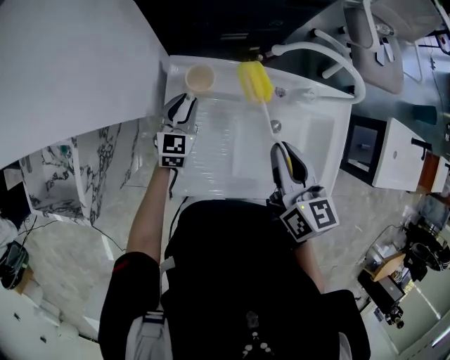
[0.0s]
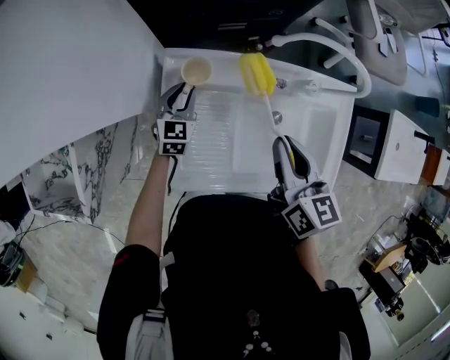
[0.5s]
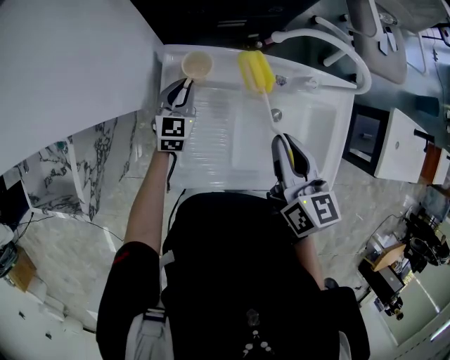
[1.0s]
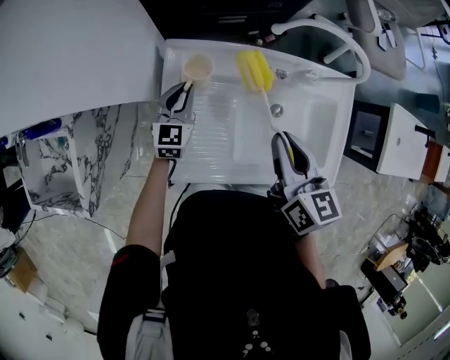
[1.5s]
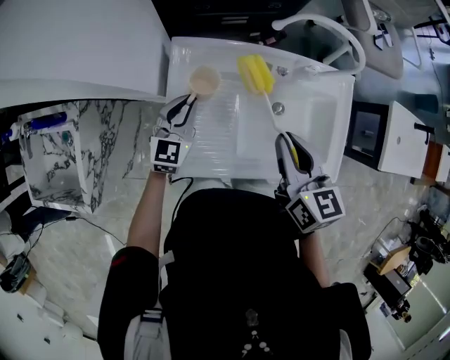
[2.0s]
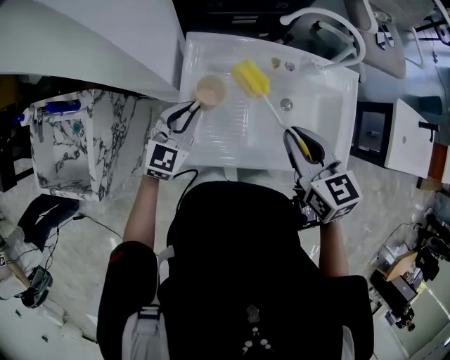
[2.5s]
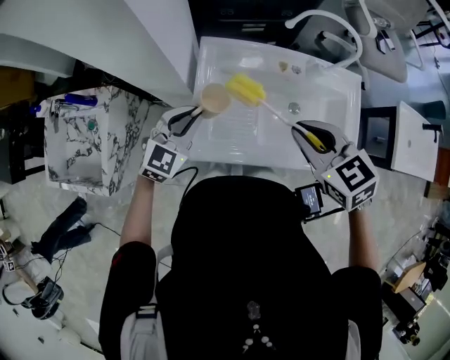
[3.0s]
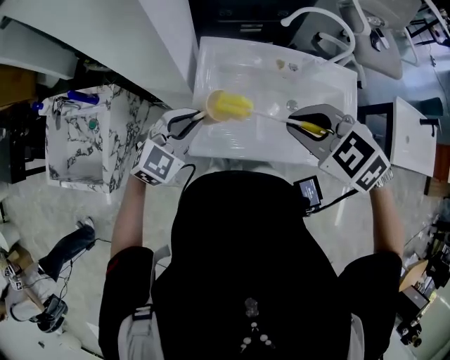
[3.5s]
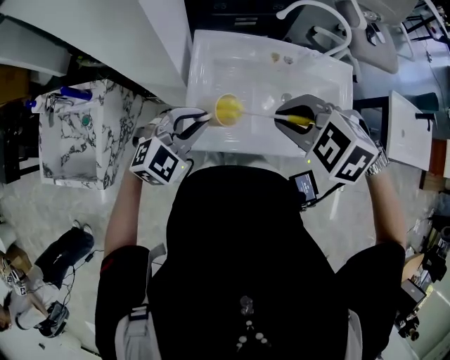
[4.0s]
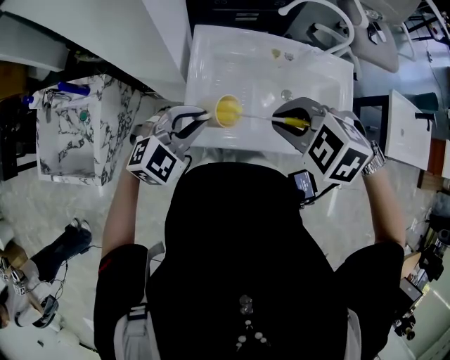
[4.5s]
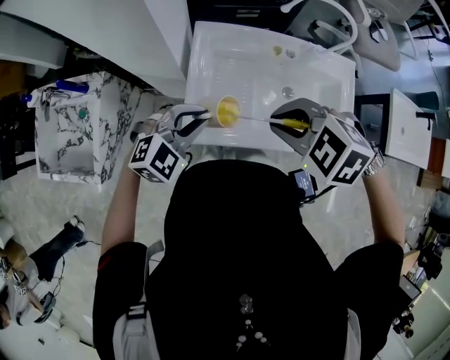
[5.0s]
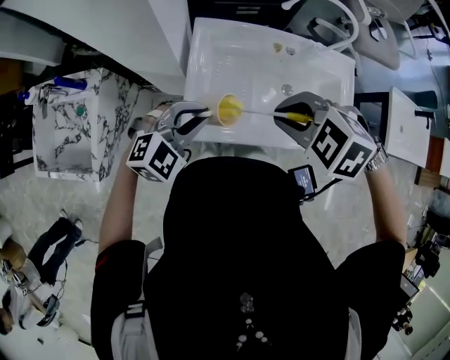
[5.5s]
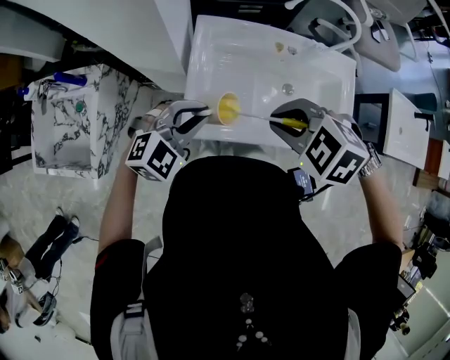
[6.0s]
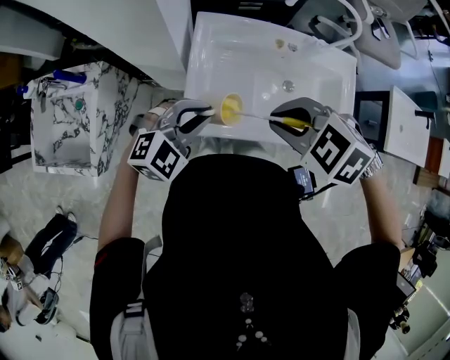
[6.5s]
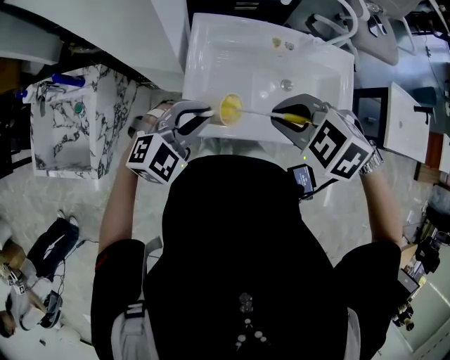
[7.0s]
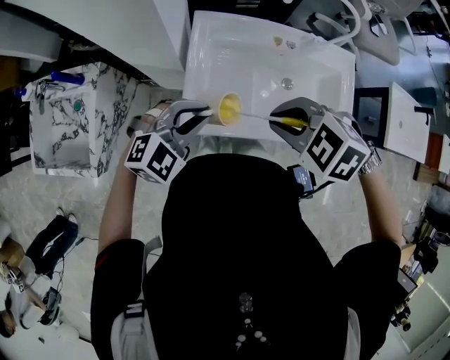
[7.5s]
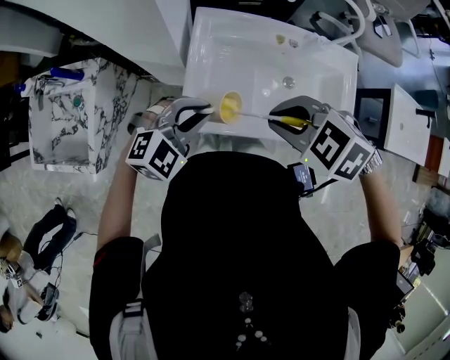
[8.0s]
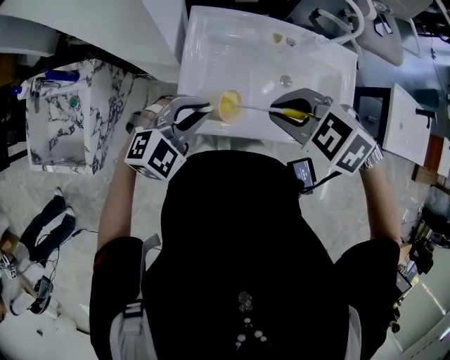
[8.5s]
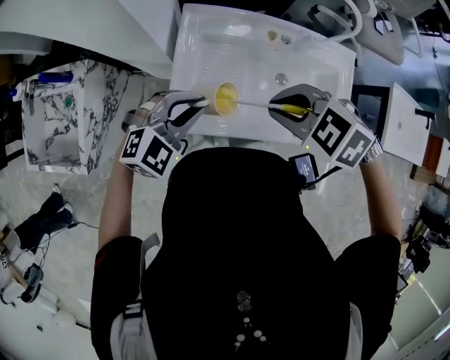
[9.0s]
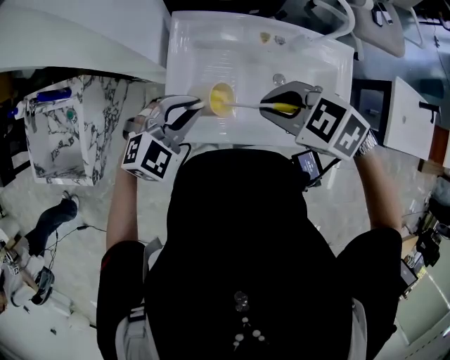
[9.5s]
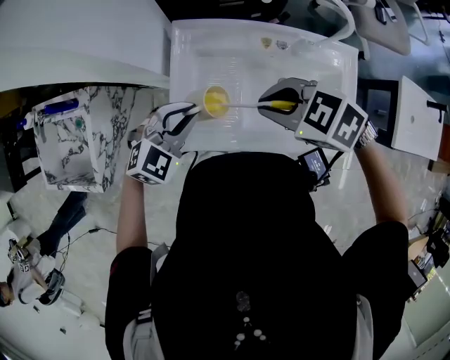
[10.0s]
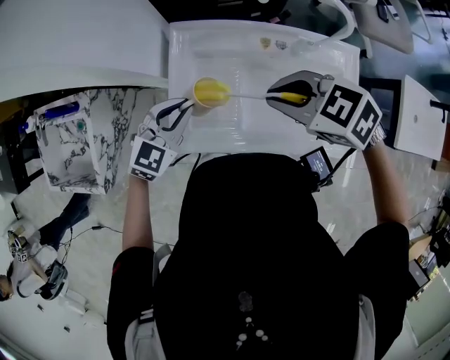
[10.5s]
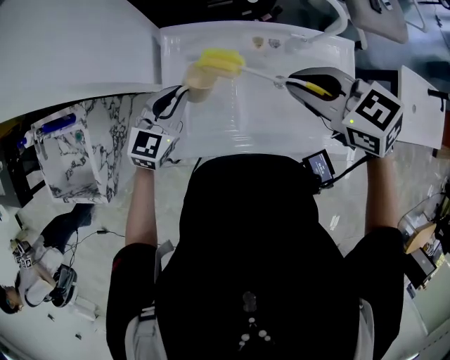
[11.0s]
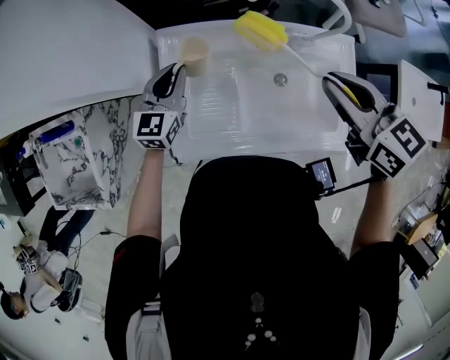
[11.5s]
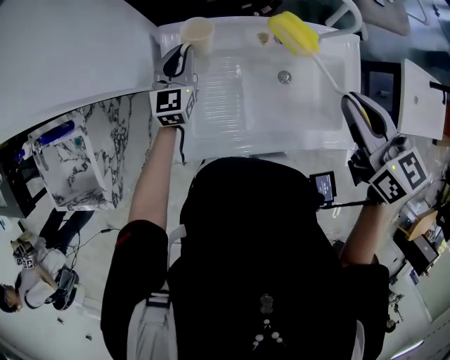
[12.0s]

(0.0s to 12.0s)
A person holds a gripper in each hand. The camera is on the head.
0.0s - 2.0s: The right gripper travels backward by roughly 5 cm. Meanwhile the left gripper travels backward and upward by some 10 cm.
2.0s - 4.0s: The right gripper goes roughly 15 cm backward, to the left and upward, and tips its fingers downward by about 30 degrees. The left gripper moves backward and upward, about 20 cm, and rotates some 40 degrees.
4.0s - 8.0s: There are only small adjustments of the grippers.
8.0s - 10.0s: The left gripper ends up about 10 cm from where it was; the right gripper ends up approximately 10 cm from where it was.
10.0s - 12.0s: The right gripper ends up roughly 15 cm from where it was, and rotates some 60 degrees, while the left gripper ends up approximately 20 cm from where it was, and swivels some 40 degrees.

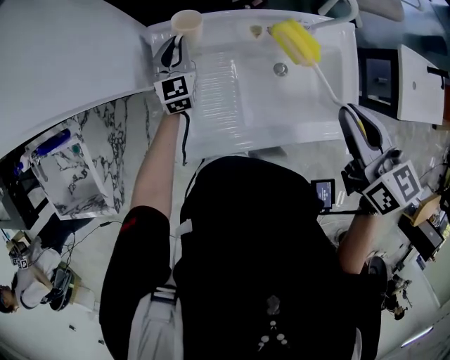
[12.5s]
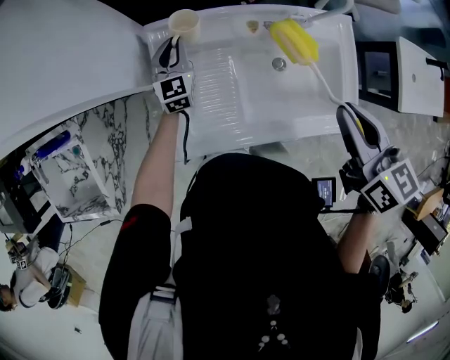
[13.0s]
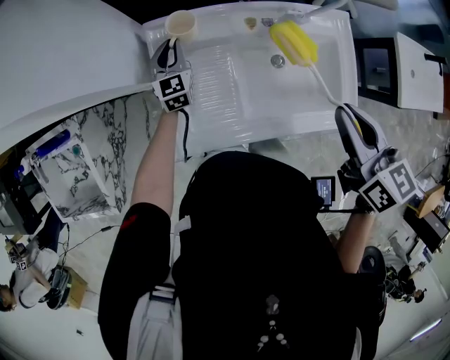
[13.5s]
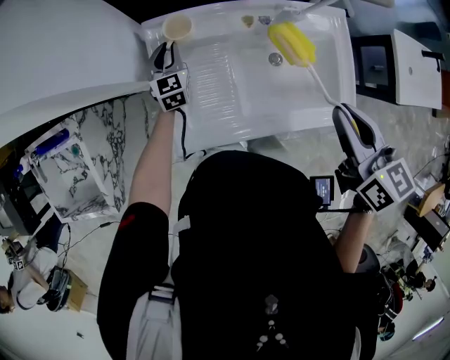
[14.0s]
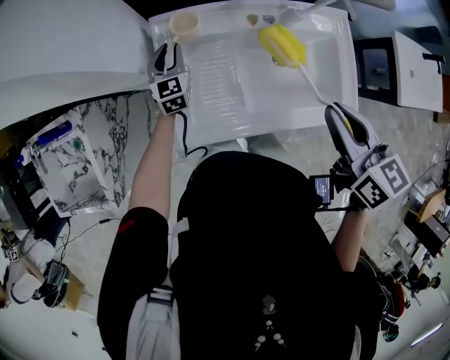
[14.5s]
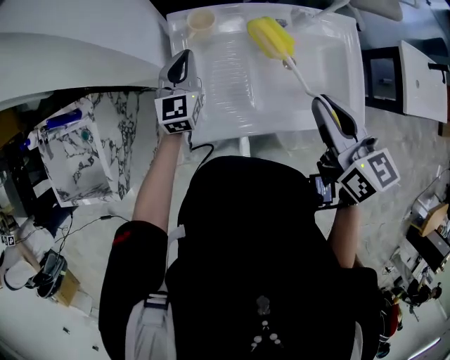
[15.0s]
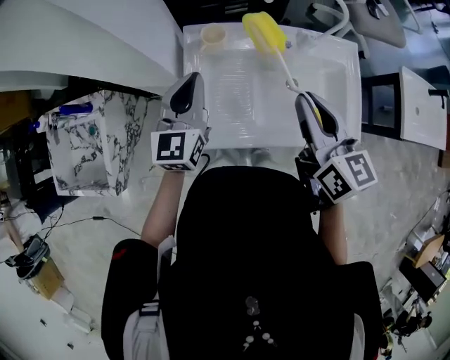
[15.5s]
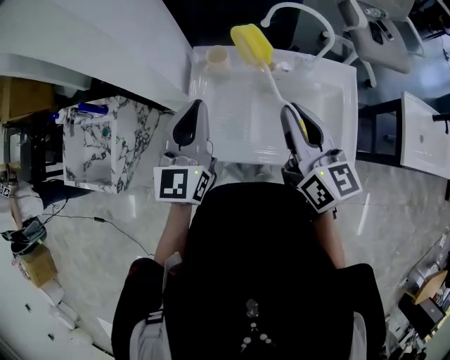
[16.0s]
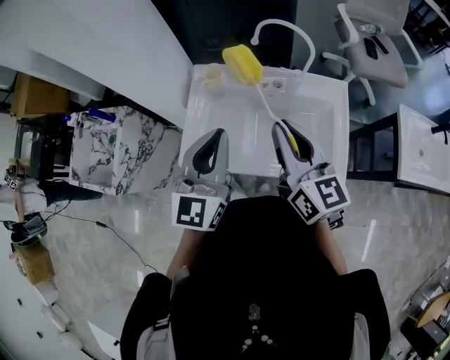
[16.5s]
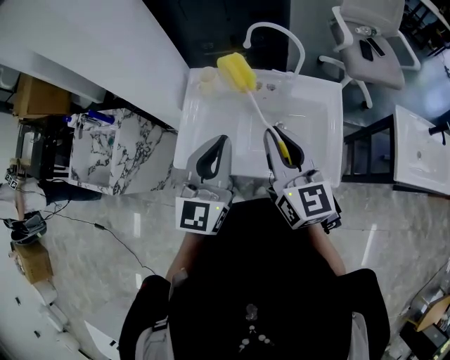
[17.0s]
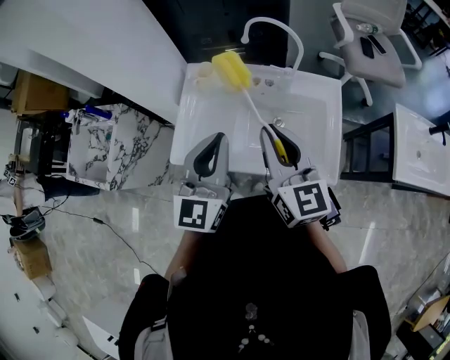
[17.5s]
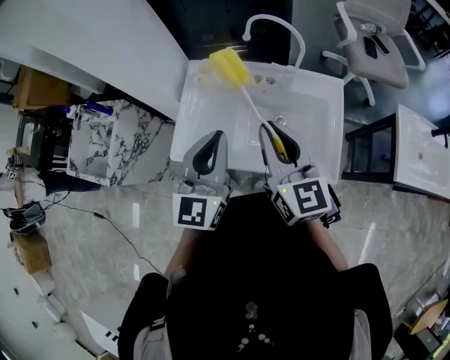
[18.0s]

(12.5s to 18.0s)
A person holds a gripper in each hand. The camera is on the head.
12.5s - 14.5s: The right gripper is displaced backward by some 5 cm, while the left gripper ends up about 5 cm from where it was.
14.5s - 16.0s: The right gripper travels upward by roughly 5 cm, and turns by about 30 degrees, while the left gripper is displaced upward and backward by some 35 cm, changes its angle by some 20 degrees, and closes.
16.0s - 18.0s: The right gripper is displaced backward by some 5 cm, while the left gripper travels to the right and backward by about 15 cm.

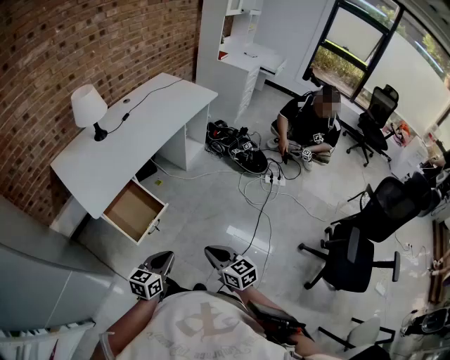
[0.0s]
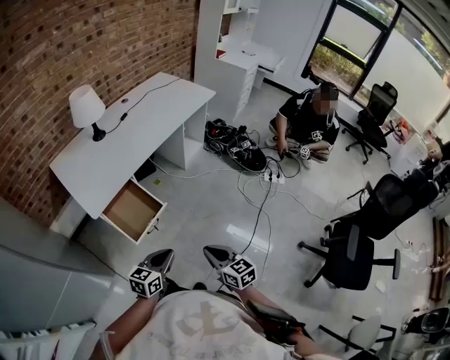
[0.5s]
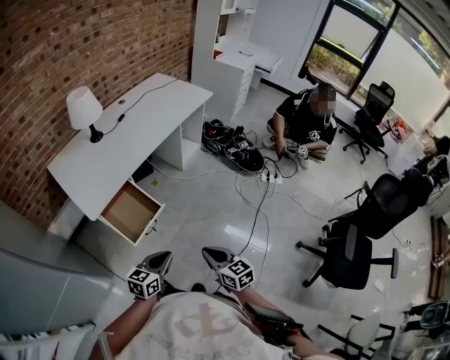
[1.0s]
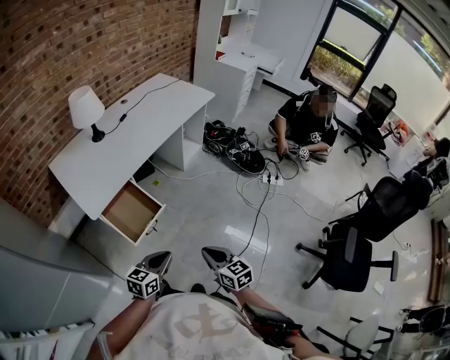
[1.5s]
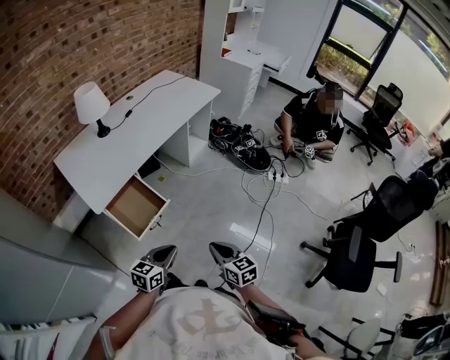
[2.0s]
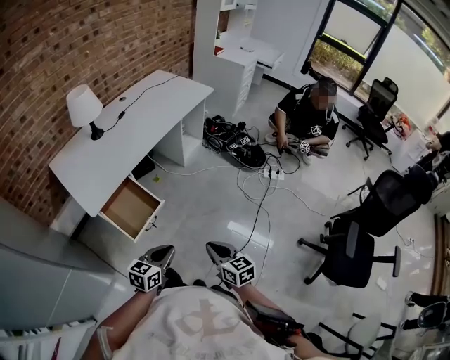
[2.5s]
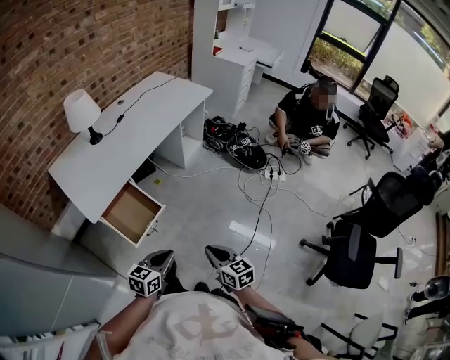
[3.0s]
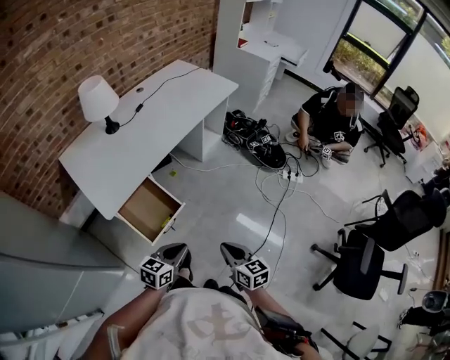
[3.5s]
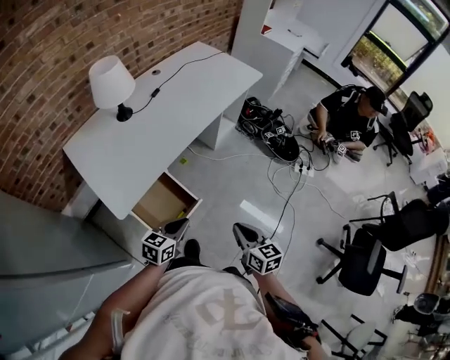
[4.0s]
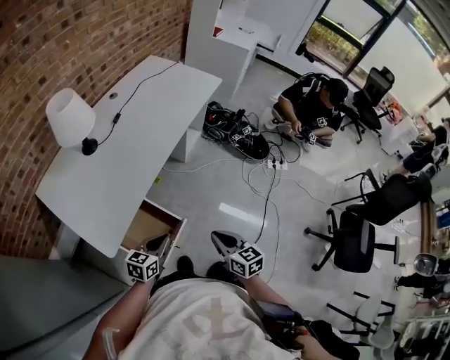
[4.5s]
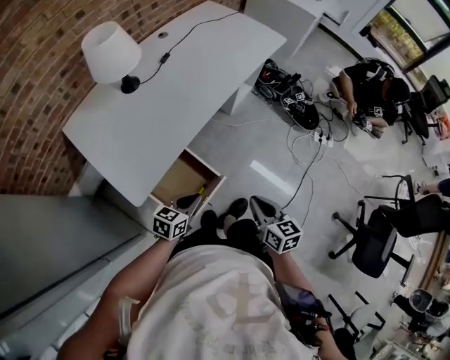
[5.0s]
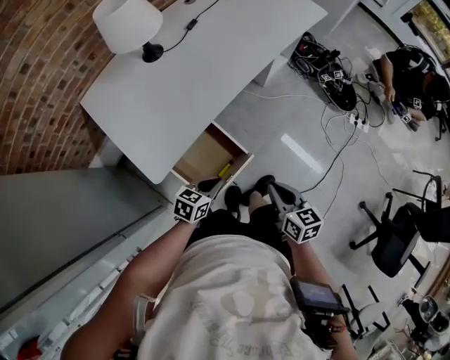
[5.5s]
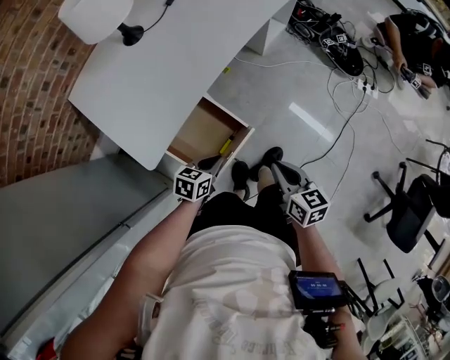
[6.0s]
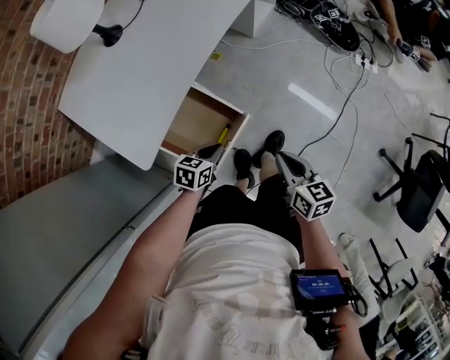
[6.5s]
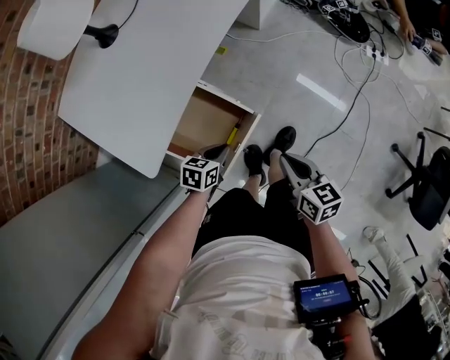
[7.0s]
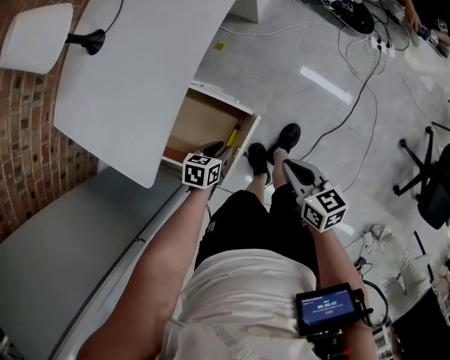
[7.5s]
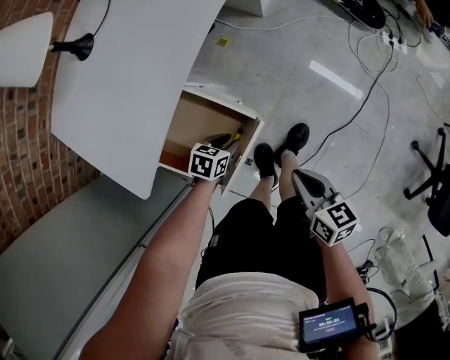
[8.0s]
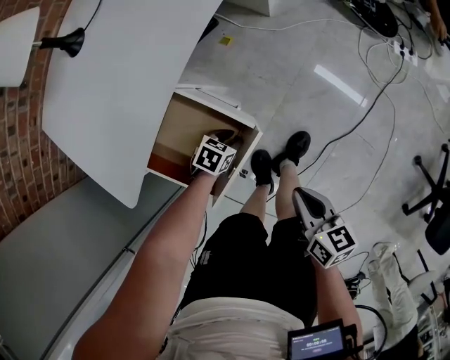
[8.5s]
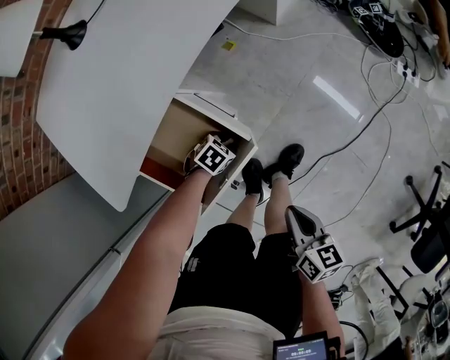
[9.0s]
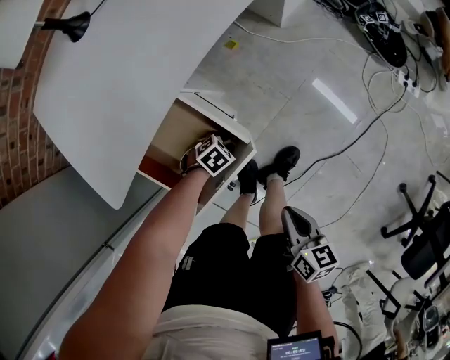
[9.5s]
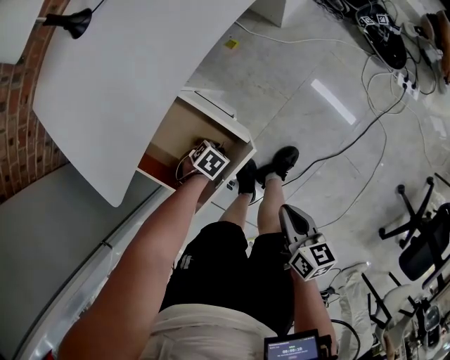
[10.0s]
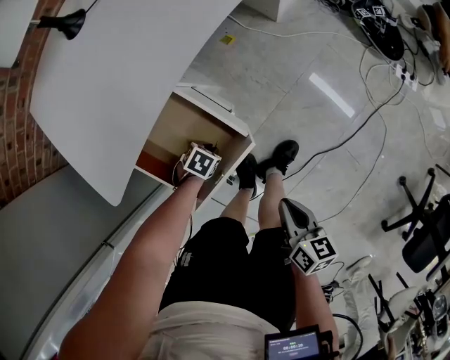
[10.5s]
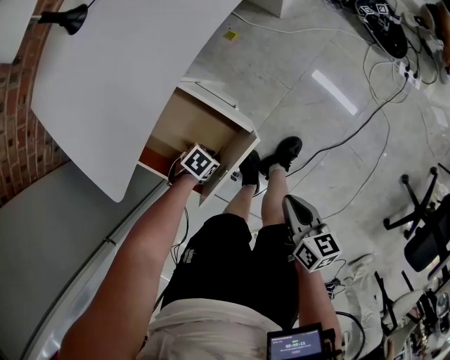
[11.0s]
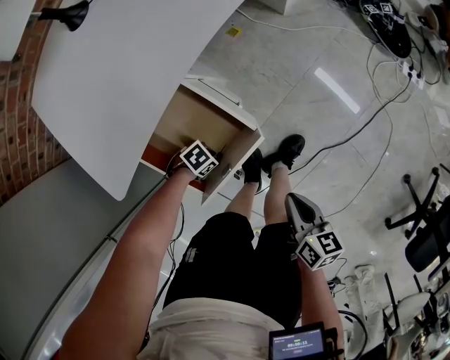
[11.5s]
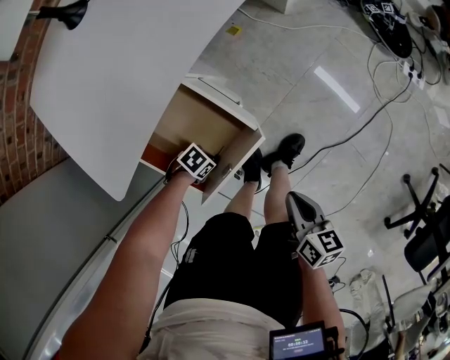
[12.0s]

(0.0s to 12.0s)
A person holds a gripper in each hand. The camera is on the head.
0.0s - 2.0s: The grippers stay close to where they were, moving slightly.
2.0s - 4.0s: The grippers both shift forward and to the left by approximately 20 cm.
4.0s - 6.0s: The left gripper shifts about 15 cm downward, and changes its angle by about 20 degrees. The right gripper shifts some 15 cm downward, to the left and forward.
6.0s - 8.0s: The right gripper moves downward, about 10 cm; the left gripper goes roughly 20 cm downward, and opens up.
8.0s - 10.0s: The right gripper is displaced downward by about 5 cm, while the left gripper travels downward by approximately 10 cm, and turns by roughly 30 degrees.
10.0s - 12.0s: The left gripper changes place by approximately 10 cm, and changes its angle by roughly 20 degrees.
